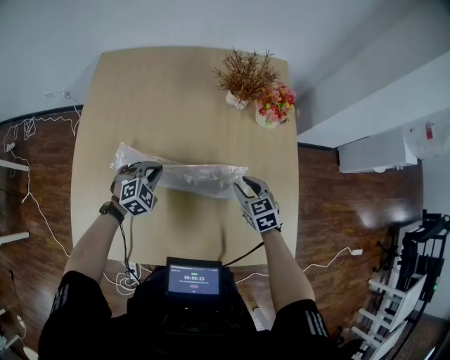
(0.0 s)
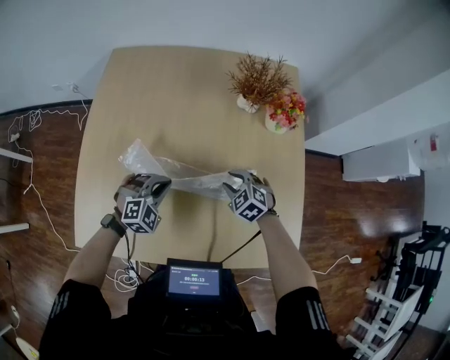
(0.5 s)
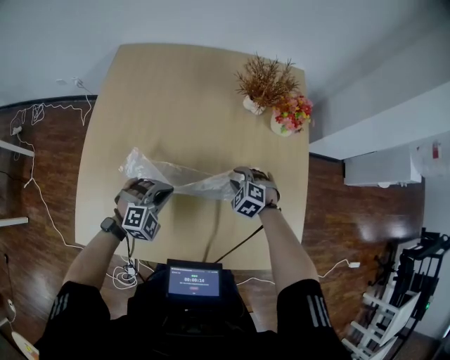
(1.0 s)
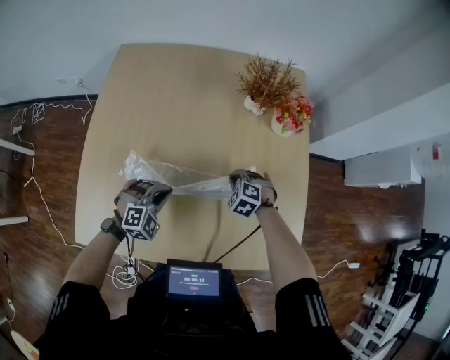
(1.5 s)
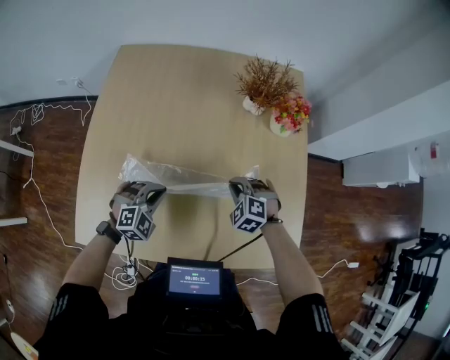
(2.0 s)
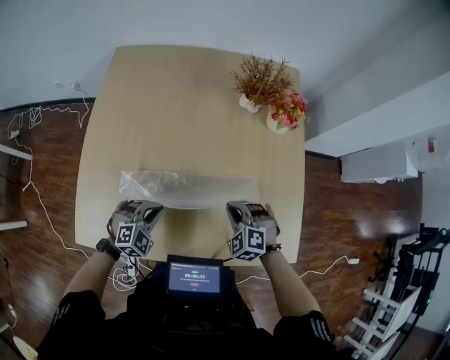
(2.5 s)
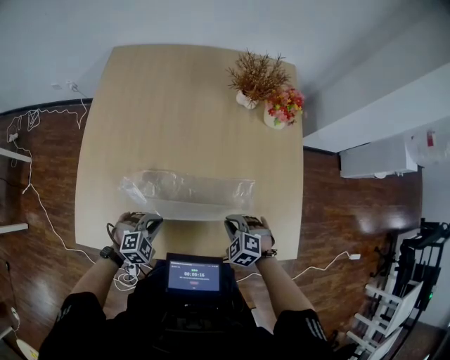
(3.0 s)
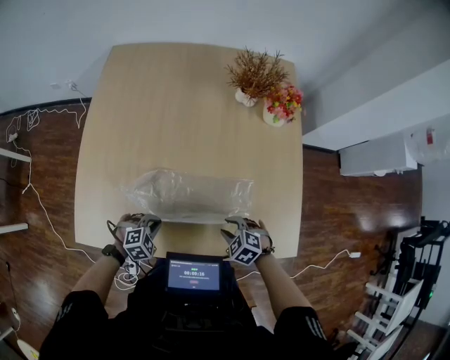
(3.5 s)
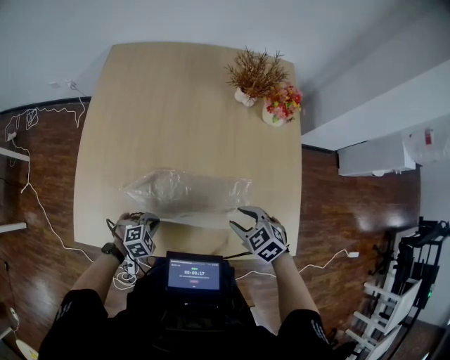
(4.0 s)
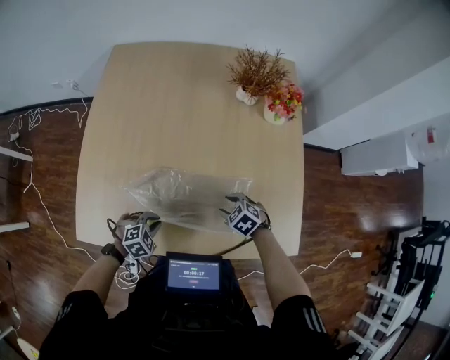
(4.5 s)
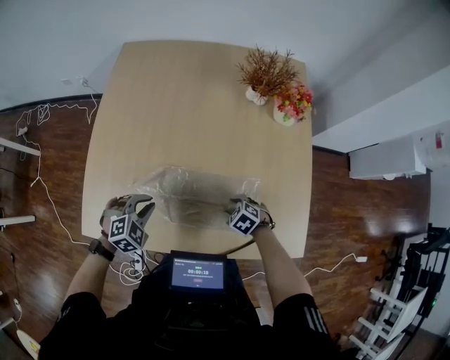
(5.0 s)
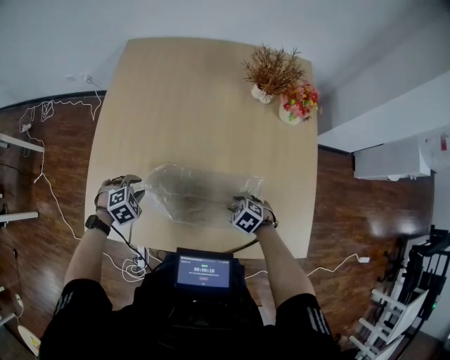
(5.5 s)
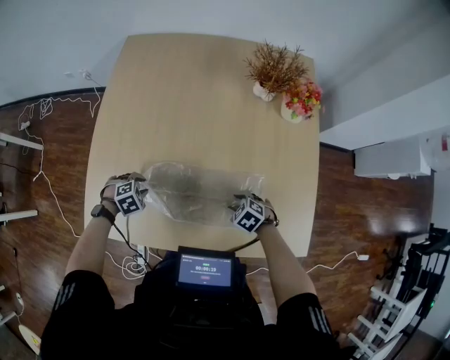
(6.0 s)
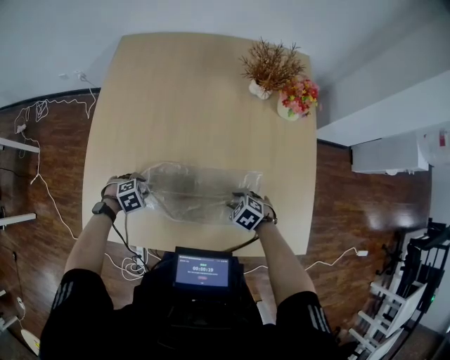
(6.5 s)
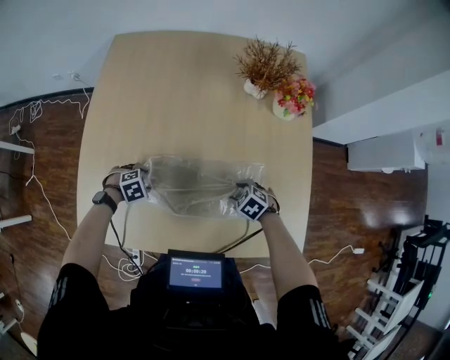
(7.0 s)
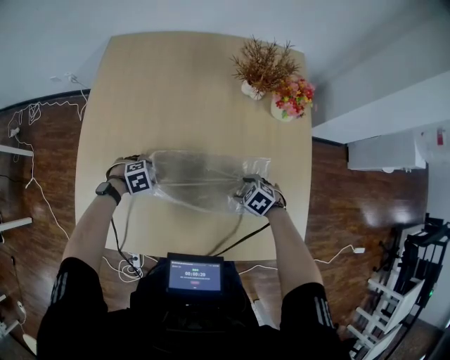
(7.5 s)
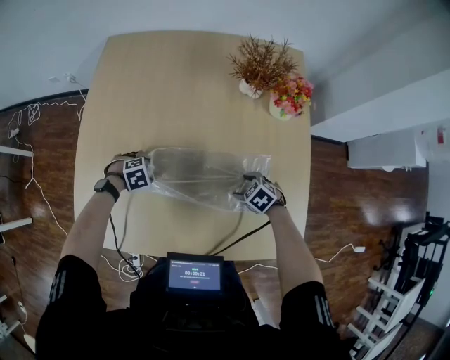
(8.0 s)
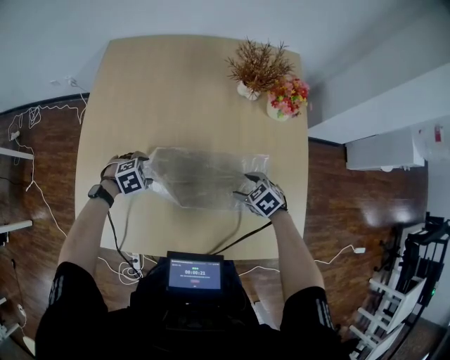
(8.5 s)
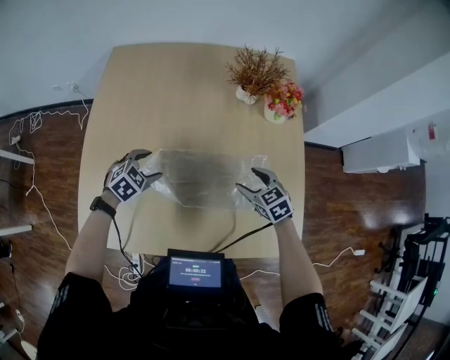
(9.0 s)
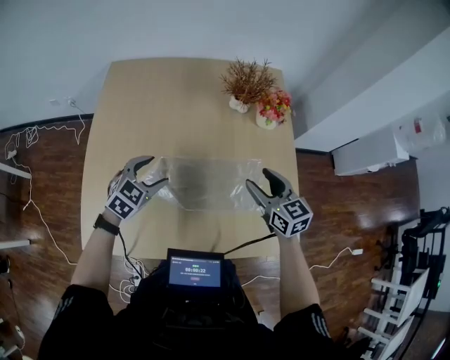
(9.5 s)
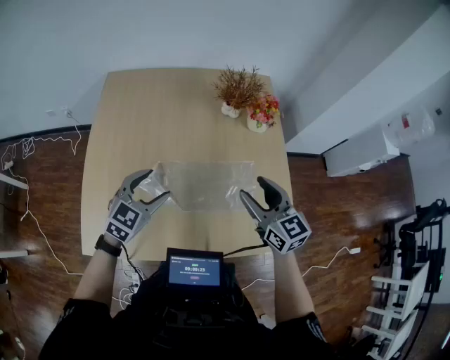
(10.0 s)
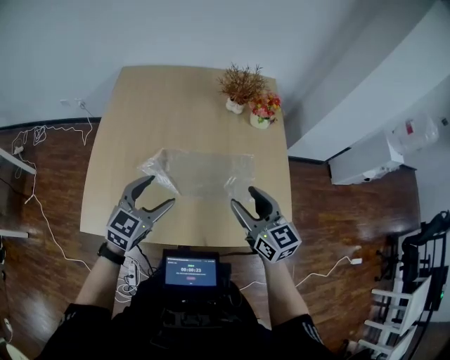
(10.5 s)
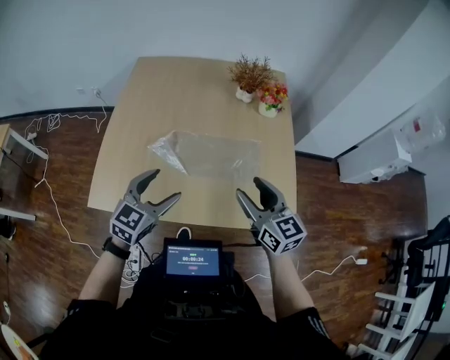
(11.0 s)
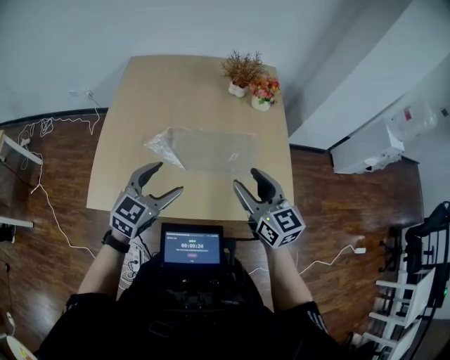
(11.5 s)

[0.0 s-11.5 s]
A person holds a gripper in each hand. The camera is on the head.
0.0 to 2.0 s: The left gripper goes roughly 10 cm backward. The right gripper heads to the left, covering some 10 cm, rolls counterclockwise, seen from behind, by approximately 50 degrees, and closes.
2.0 to 4.0 s: The right gripper moves backward, roughly 15 cm, turns by some 30 degrees, and opens up. The left gripper is displaced backward and downward by some 20 cm, and swivels roughly 30 degrees.
4.0 to 6.0 s: The right gripper is displaced downward by roughly 15 cm; the left gripper moves roughly 10 cm upward and comes back, and opens.
6.0 to 7.5 s: The right gripper changes place by some 10 cm. Meanwhile the left gripper shifts by some 10 cm, and opens up.
7.5 to 9.5 s: Both grippers travel together upward, roughly 25 cm. The left gripper points its fingers about 40 degrees further upward; the right gripper tilts its fingers roughly 50 degrees upward.
9.5 to 11.5 s: The grippers both shift backward and upward by about 25 cm. The left gripper swivels about 20 degrees.

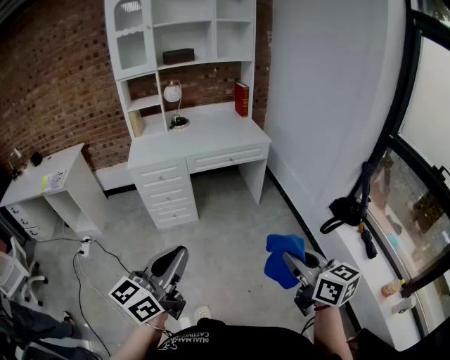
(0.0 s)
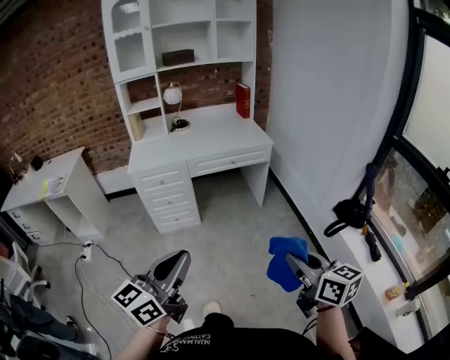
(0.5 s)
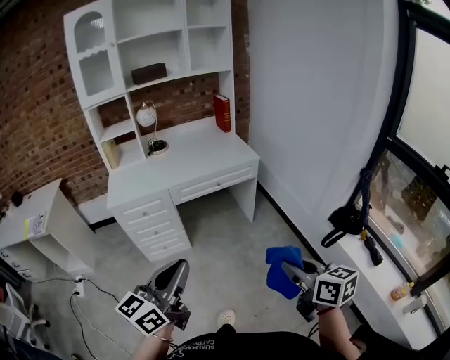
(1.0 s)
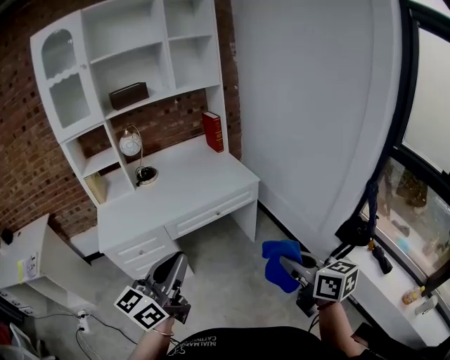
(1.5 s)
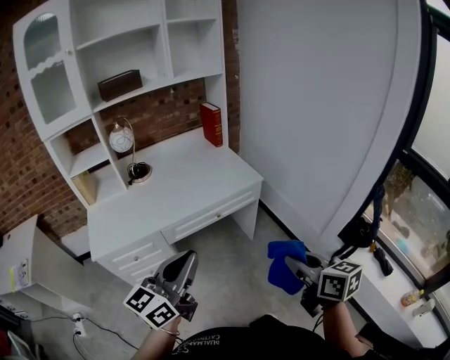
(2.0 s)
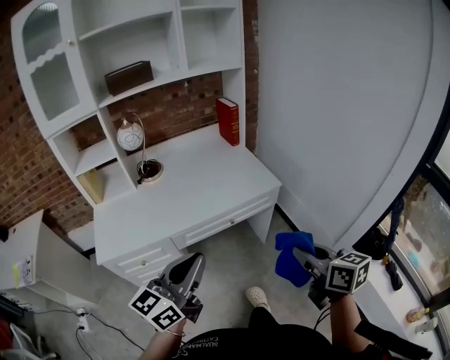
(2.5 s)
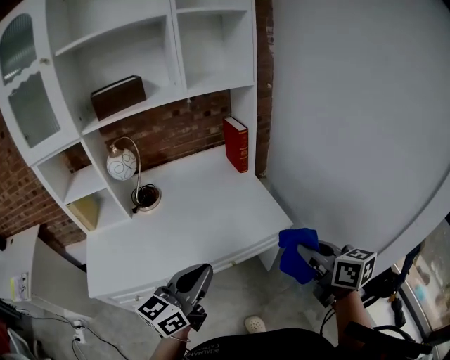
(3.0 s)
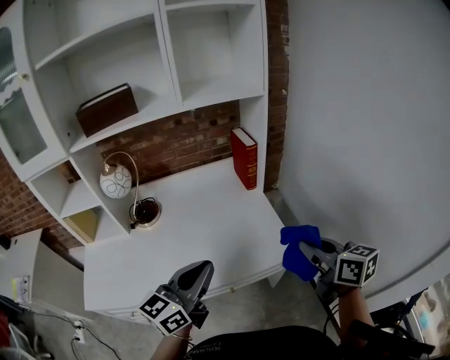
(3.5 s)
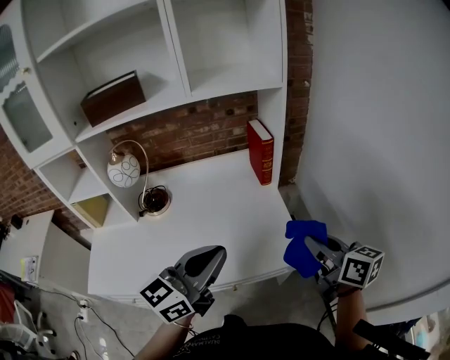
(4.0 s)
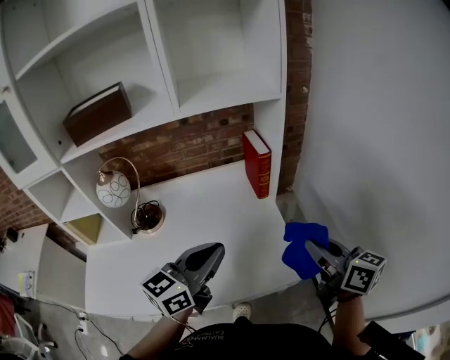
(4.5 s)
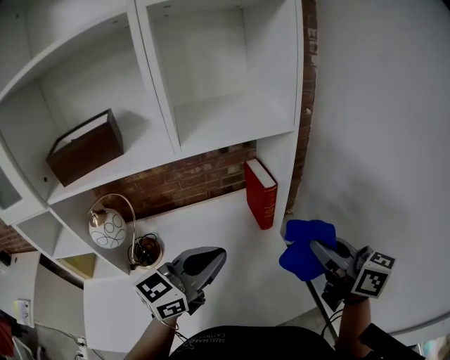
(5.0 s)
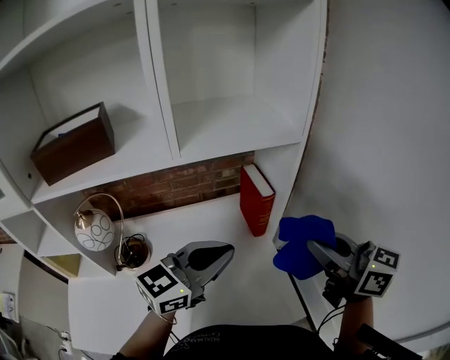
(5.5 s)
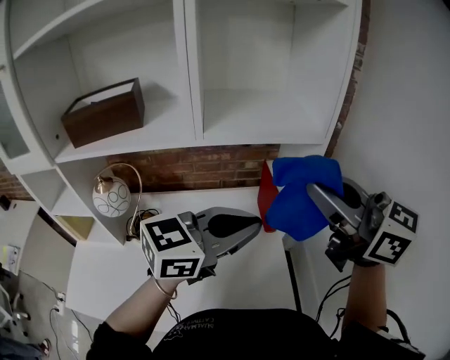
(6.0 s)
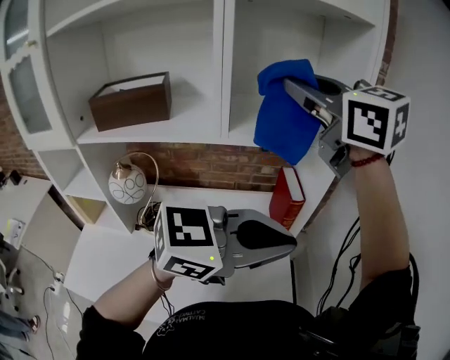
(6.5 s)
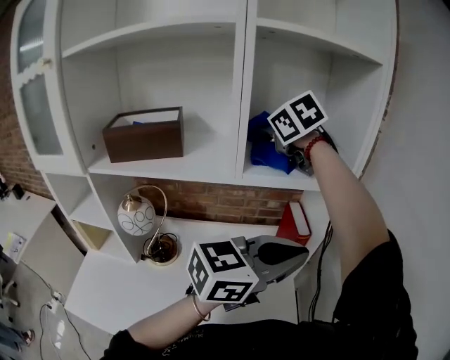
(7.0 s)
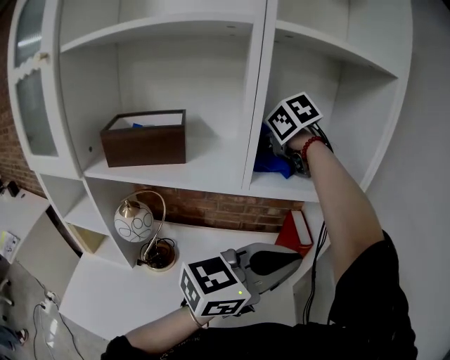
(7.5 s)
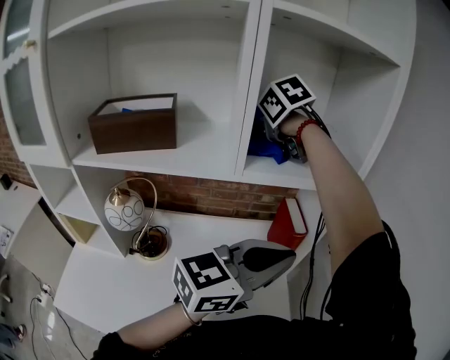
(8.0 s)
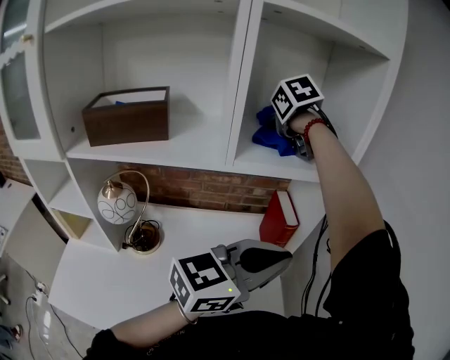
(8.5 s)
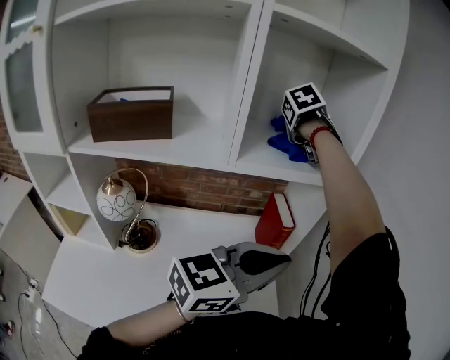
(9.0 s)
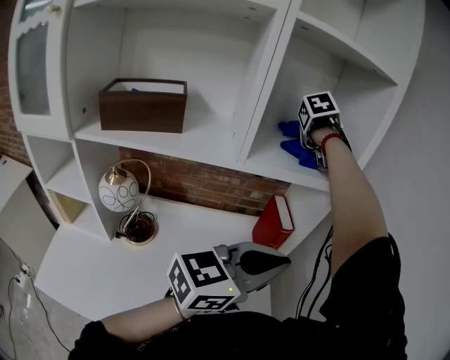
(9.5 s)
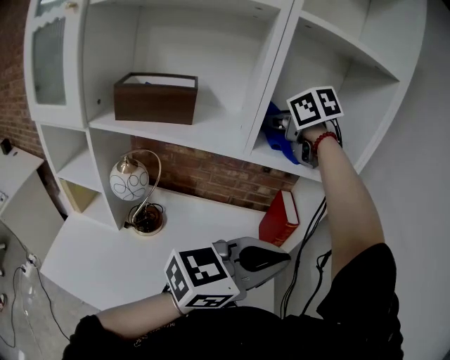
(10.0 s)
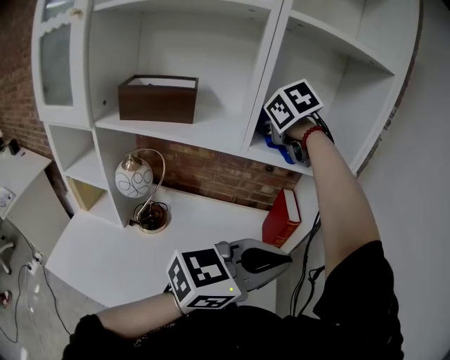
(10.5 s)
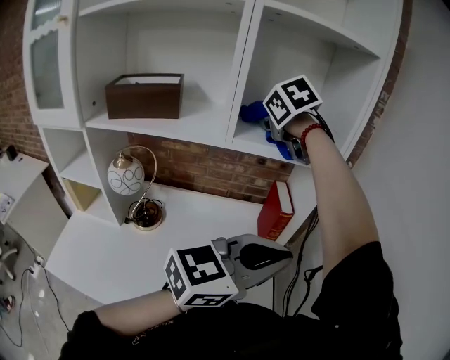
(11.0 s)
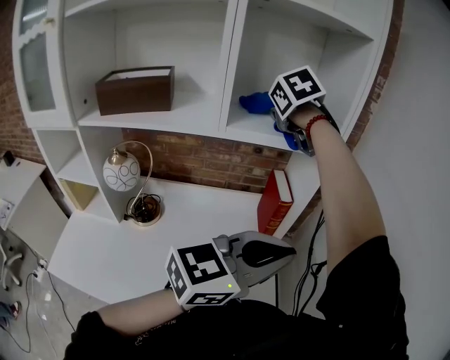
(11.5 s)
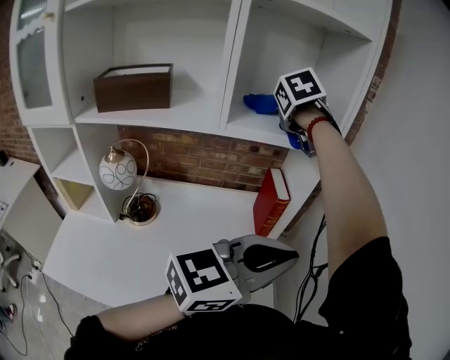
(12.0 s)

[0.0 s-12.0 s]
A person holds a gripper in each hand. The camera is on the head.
0.0 to 2.0 s: Both grippers are carried forward, about 40 cm.
2.0 to 4.0 s: The two grippers travel together, forward, roughly 50 cm.
4.0 to 6.0 s: The right gripper is displaced upward, forward and to the left by about 35 cm, and changes its angle by approximately 40 degrees, while the left gripper heads forward and upward, covering roughly 25 cm.
6.0 to 8.0 s: The right gripper travels upward and back again, approximately 15 cm each way, and tilts its fingers about 50 degrees downward.
8.0 to 10.0 s: The left gripper ends up roughly 5 cm from where it was.
10.0 to 12.0 s: The left gripper travels to the right by some 5 cm, while the right gripper goes roughly 15 cm to the right and forward, and turns by roughly 40 degrees.

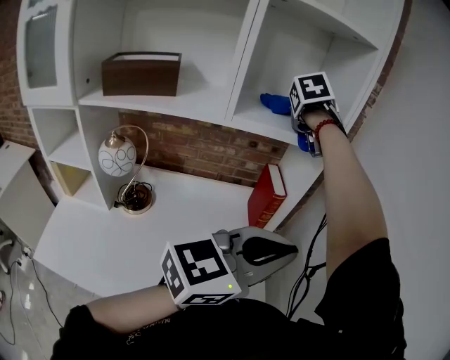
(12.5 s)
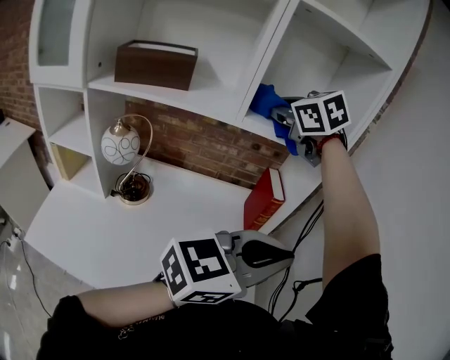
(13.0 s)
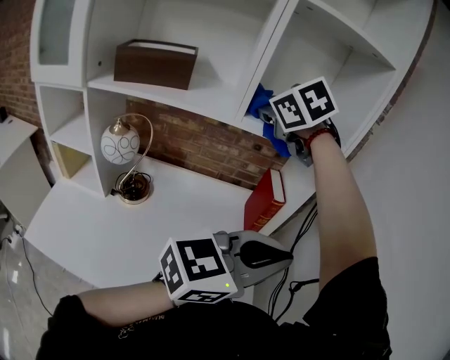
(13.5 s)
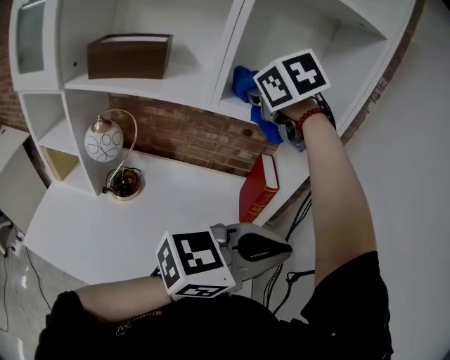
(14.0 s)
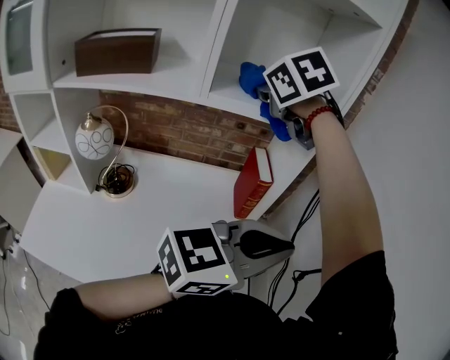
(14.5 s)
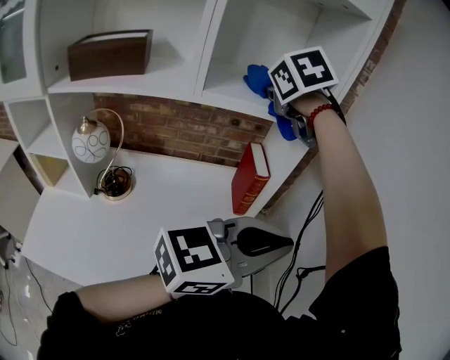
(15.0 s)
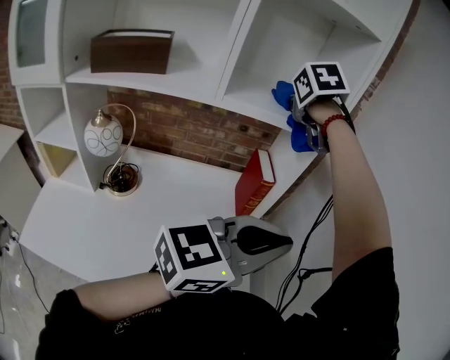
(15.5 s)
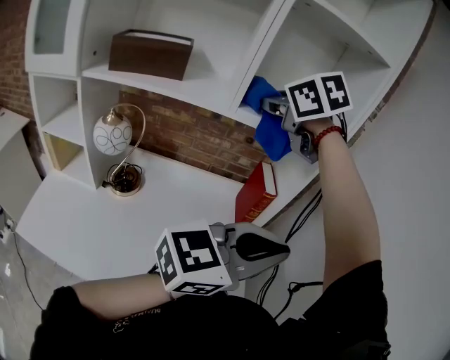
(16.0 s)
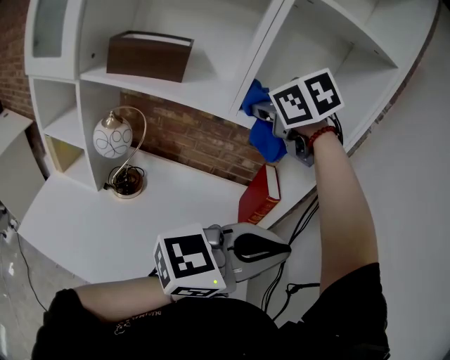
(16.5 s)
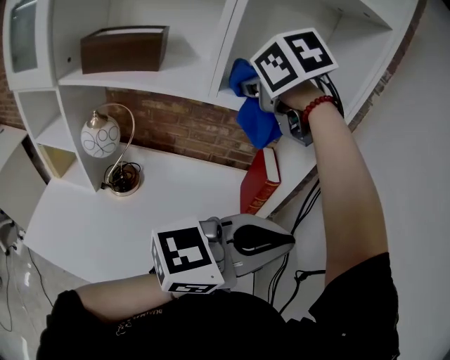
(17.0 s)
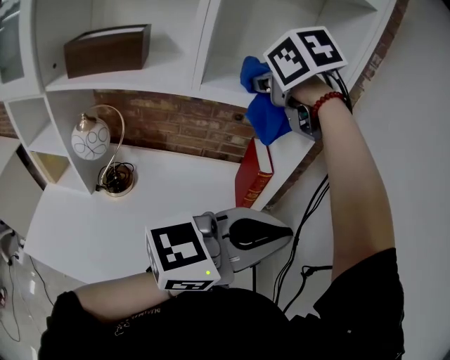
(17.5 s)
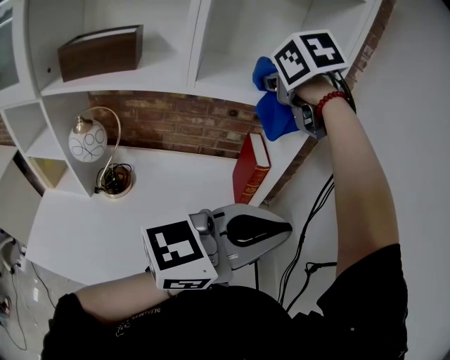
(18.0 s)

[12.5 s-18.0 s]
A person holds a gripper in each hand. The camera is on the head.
12.5 to 14.5 s: The right gripper shifts some 10 cm backward and to the left, and rotates some 30 degrees, while the left gripper shifts by roughly 5 cm.
14.5 to 16.0 s: The right gripper shifts some 5 cm backward; the left gripper ends up about 5 cm from where it was.
16.0 to 18.0 s: The right gripper moves to the right and forward, approximately 10 cm.
